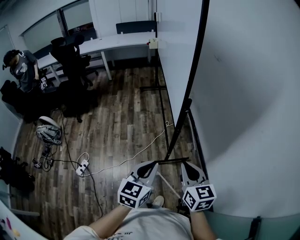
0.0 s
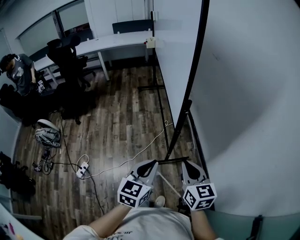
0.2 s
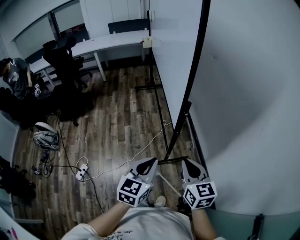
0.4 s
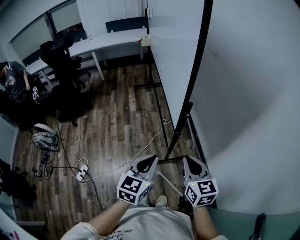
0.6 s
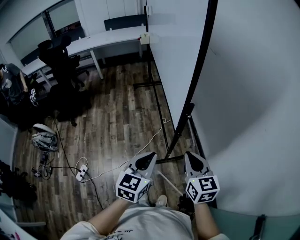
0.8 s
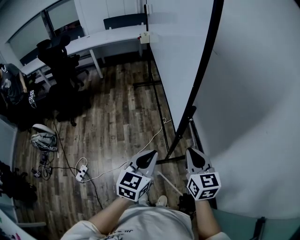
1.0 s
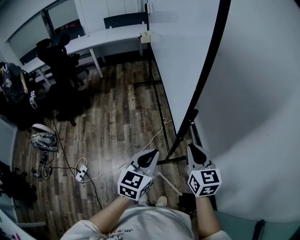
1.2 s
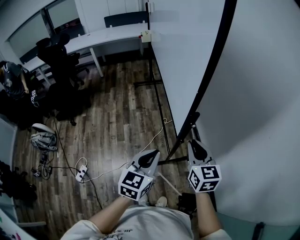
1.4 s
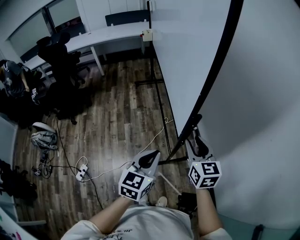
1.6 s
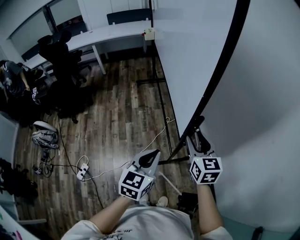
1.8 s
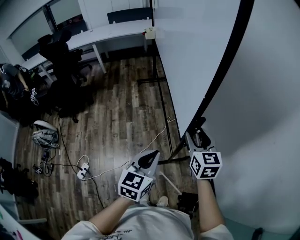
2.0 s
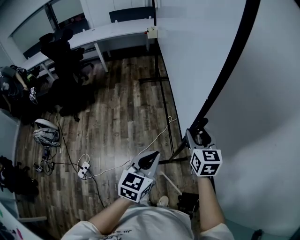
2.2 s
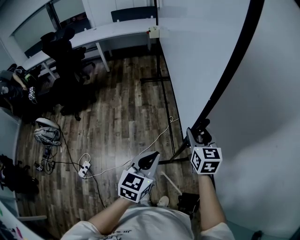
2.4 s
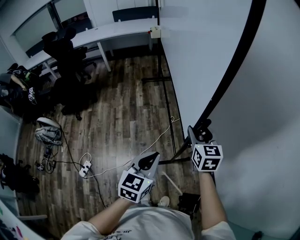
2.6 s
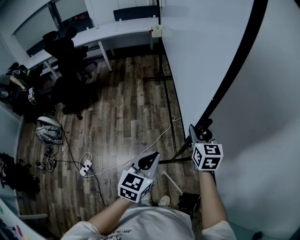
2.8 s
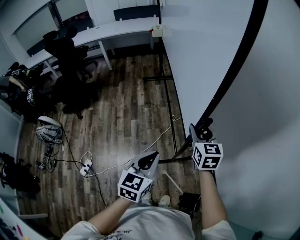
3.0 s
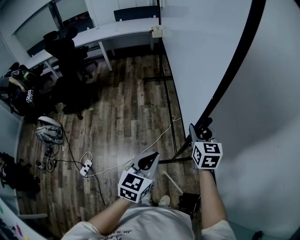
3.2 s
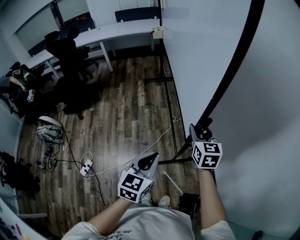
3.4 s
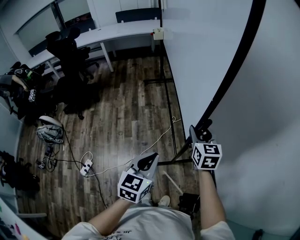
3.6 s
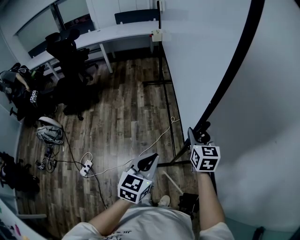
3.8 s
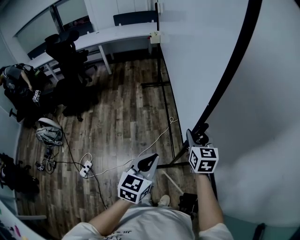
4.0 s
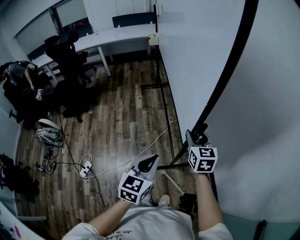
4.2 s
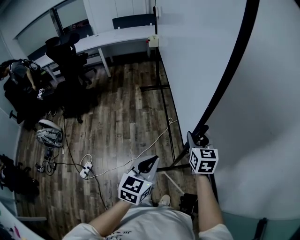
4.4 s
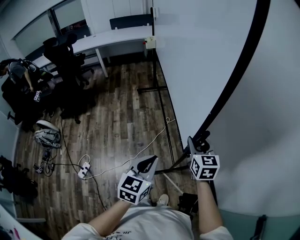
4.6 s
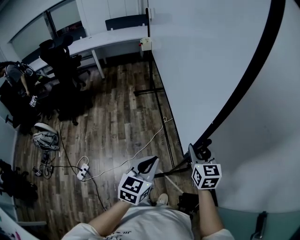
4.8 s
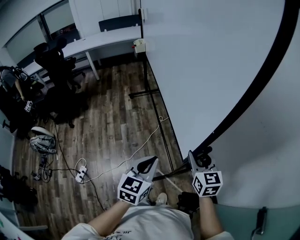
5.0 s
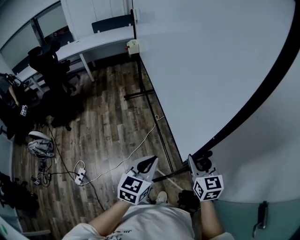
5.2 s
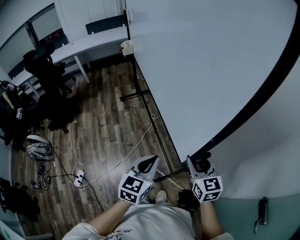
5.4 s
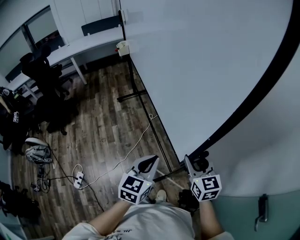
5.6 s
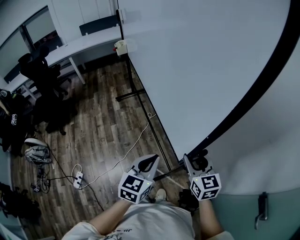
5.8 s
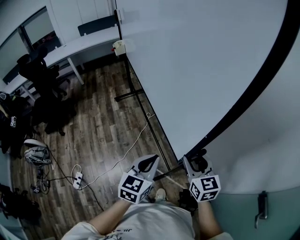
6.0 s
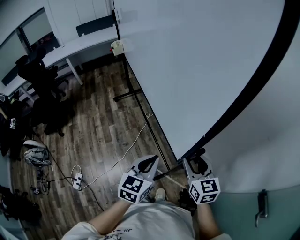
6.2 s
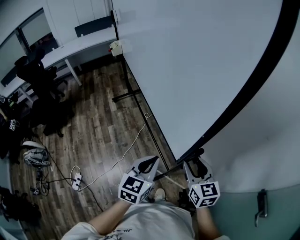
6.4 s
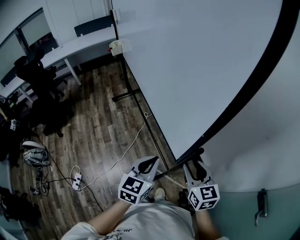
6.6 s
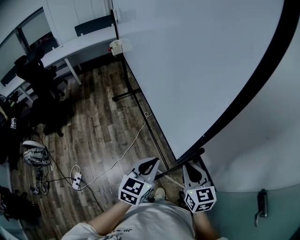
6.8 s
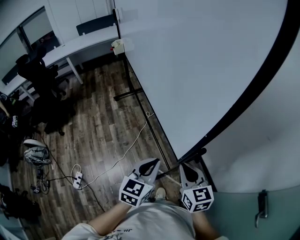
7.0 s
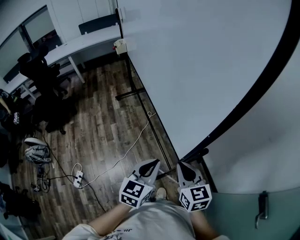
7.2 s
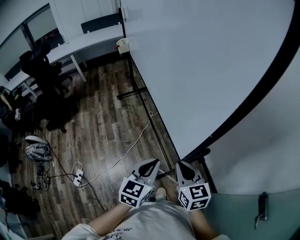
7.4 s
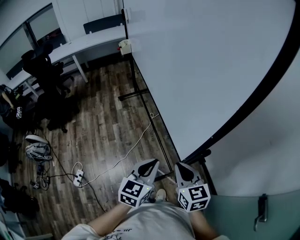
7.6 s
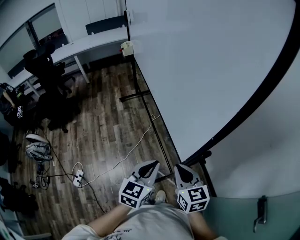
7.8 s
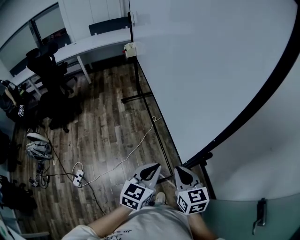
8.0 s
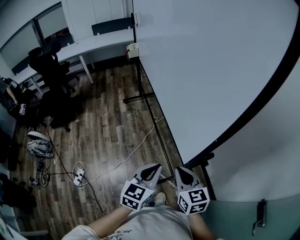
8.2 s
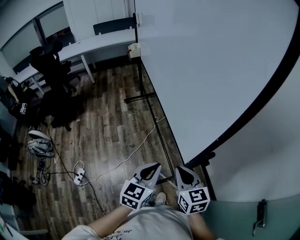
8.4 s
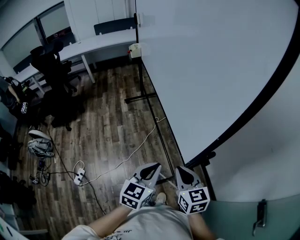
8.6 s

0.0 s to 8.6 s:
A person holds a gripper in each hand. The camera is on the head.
0.0 to 1.4 s: The grippers both shift forward by about 15 cm.
1.4 to 2.8 s: The right gripper moves forward, about 10 cm, and opens.
2.8 to 4.4 s: The two grippers go roughly 10 cm backward.
4.4 to 5.8 s: The left gripper shifts roughly 10 cm to the right, while the right gripper goes roughly 15 cm backward and to the right.
5.8 to 7.2 s: The right gripper shifts about 5 cm backward, and closes its fingers.
7.2 to 8.6 s: The grippers move only a little.

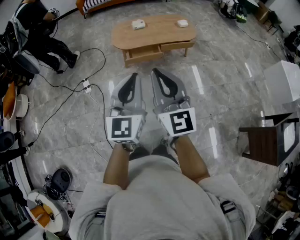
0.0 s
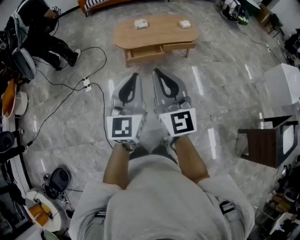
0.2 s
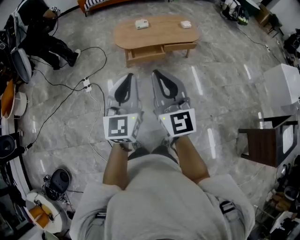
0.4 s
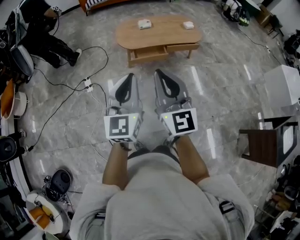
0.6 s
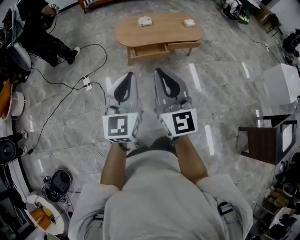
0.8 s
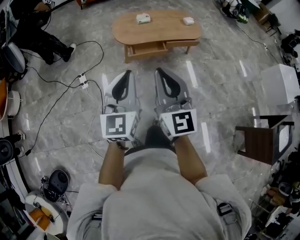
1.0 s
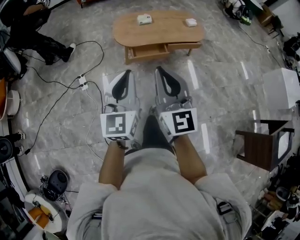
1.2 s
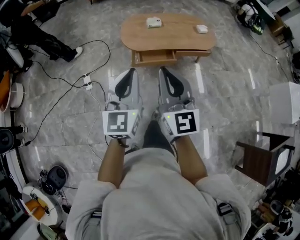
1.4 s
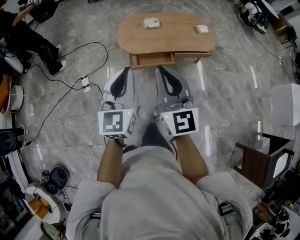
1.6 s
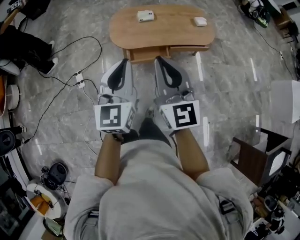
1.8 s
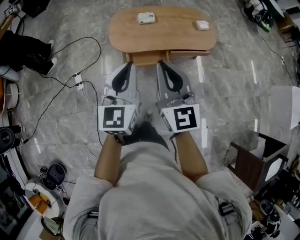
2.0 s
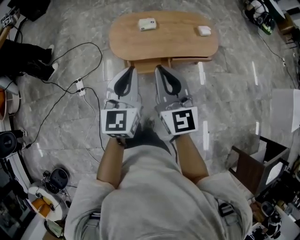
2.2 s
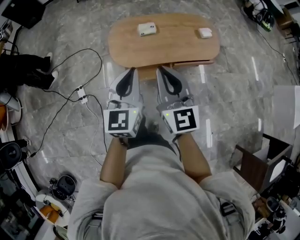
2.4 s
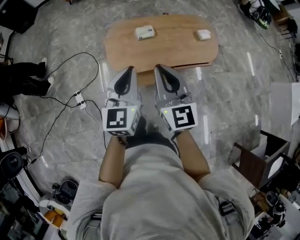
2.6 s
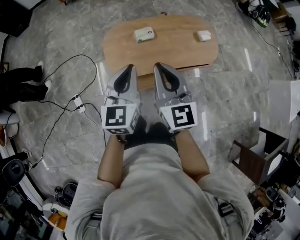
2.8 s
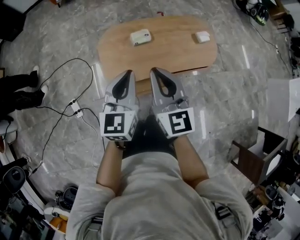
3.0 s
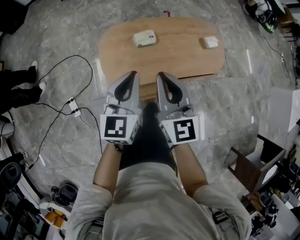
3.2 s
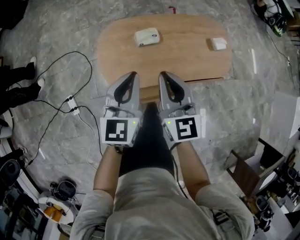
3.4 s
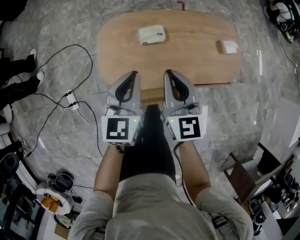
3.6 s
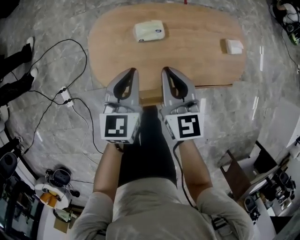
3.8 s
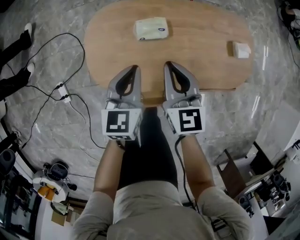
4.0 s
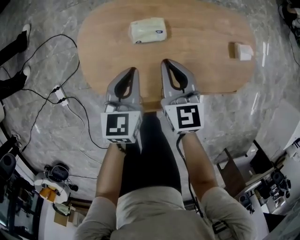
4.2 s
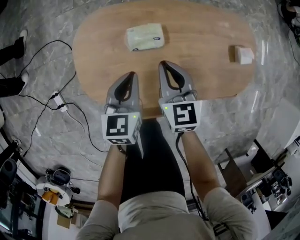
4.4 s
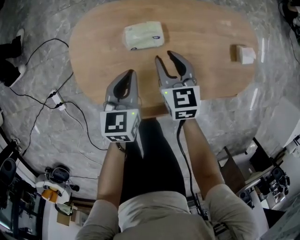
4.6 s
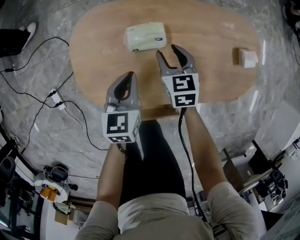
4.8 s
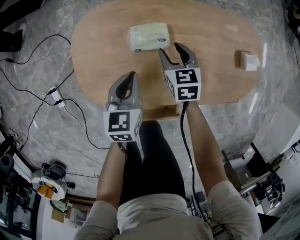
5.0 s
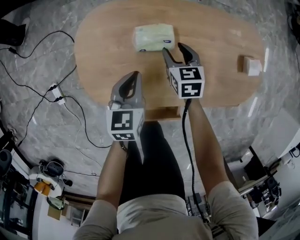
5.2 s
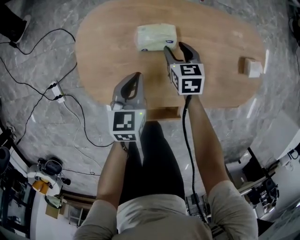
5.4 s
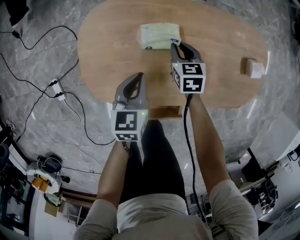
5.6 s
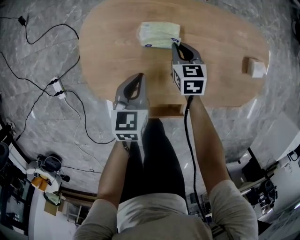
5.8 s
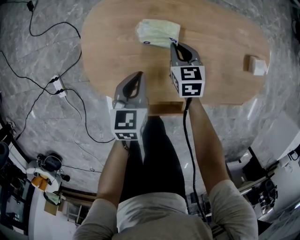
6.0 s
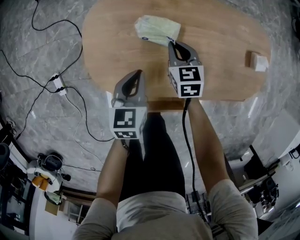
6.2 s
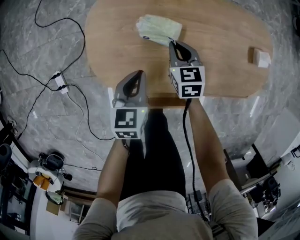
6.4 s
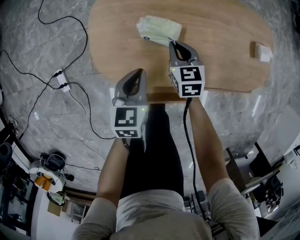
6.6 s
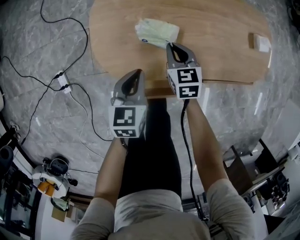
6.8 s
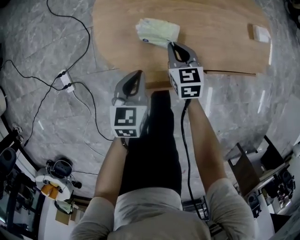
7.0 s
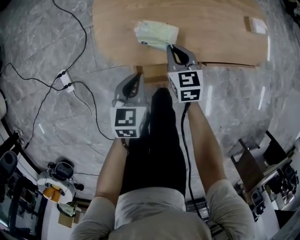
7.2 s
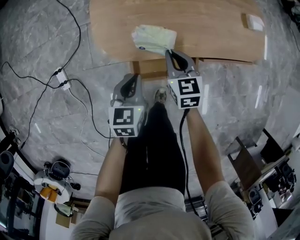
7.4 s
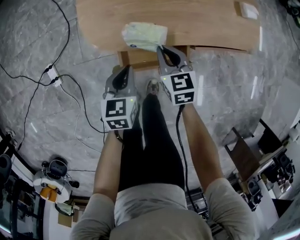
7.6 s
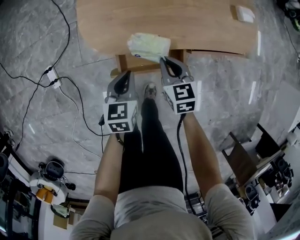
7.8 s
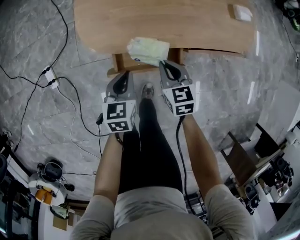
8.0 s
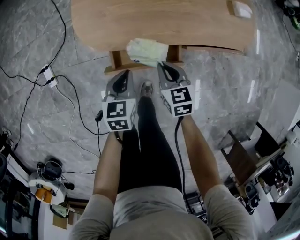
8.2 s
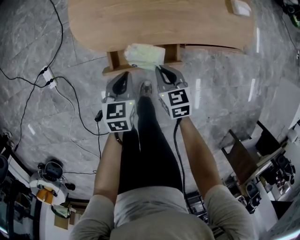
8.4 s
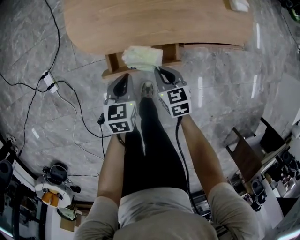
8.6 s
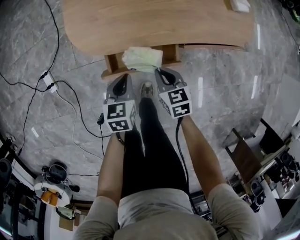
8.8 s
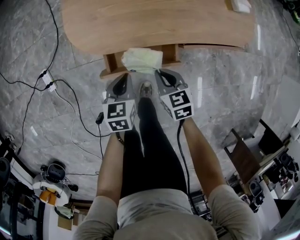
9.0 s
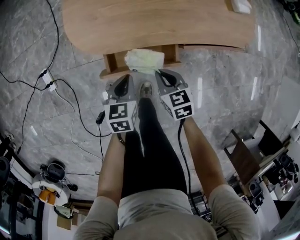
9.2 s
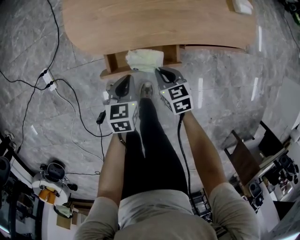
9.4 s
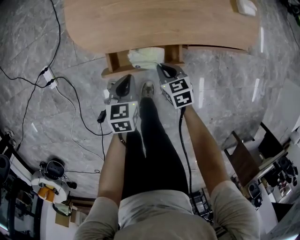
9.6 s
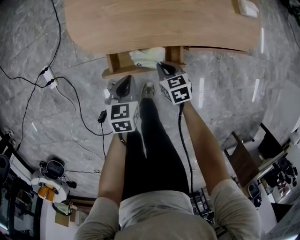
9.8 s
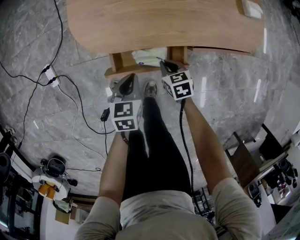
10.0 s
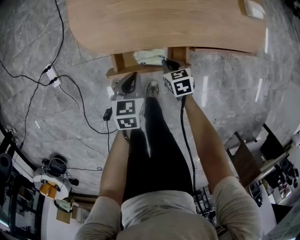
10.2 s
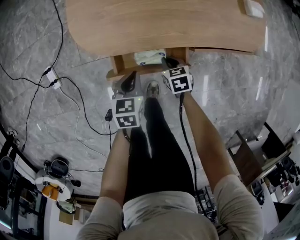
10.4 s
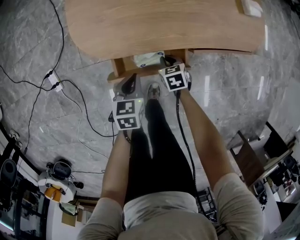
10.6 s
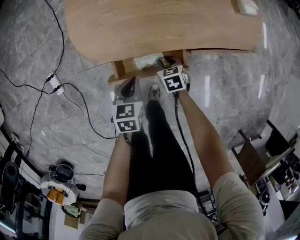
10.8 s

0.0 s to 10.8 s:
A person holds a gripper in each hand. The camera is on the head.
0.0 to 1.6 s: Both grippers move forward, some 30 cm.
1.6 to 3.0 s: The two grippers go roughly 35 cm forward.
3.0 to 4.6 s: The grippers both shift downward and forward by about 50 cm. The right gripper angles its fingers downward, by approximately 30 degrees, and opens its fingers; the left gripper swivels about 30 degrees.
4.6 to 6.2 s: The right gripper travels downward by roughly 10 cm, and closes its fingers. Meanwhile the left gripper moves some 5 cm.
6.2 to 7.8 s: The grippers both shift backward by approximately 25 cm.
7.8 to 9.2 s: The right gripper goes approximately 10 cm backward and downward, while the left gripper moves approximately 5 cm.
9.2 to 10.8 s: The right gripper is displaced downward and forward by approximately 15 cm, and opens up.

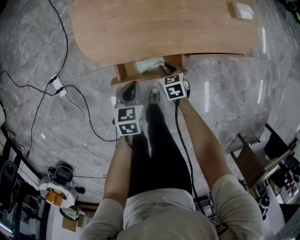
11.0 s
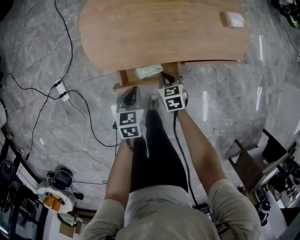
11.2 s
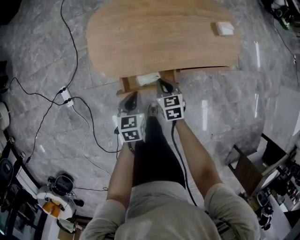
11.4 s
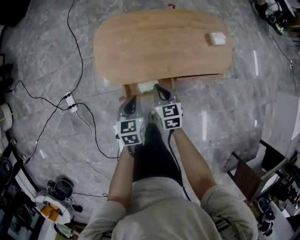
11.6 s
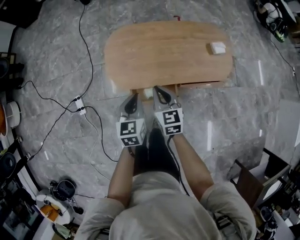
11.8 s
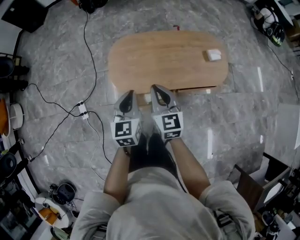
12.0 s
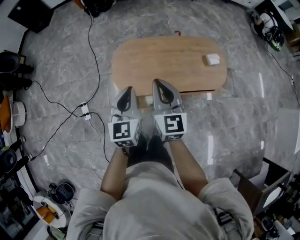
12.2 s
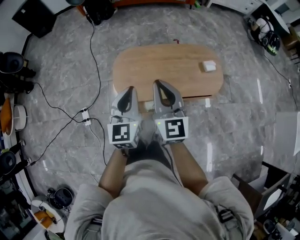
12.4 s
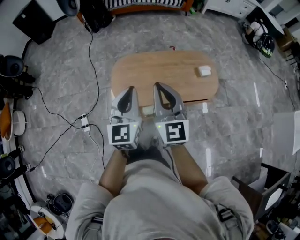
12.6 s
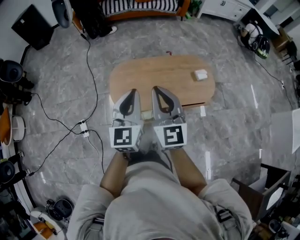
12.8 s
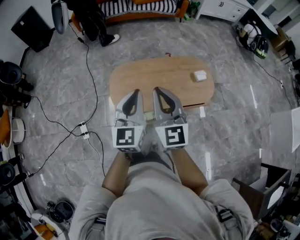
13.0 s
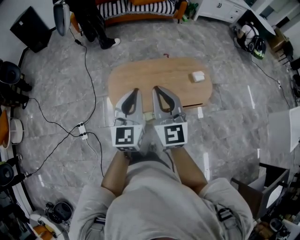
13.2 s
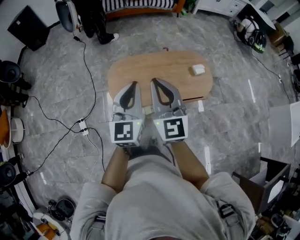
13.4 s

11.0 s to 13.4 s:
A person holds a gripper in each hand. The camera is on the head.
11.0 to 12.2 s: The two grippers go about 50 cm upward. The left gripper tilts its fingers about 30 degrees upward. Meanwhile the right gripper tilts its fingers some 50 degrees upward.
12.2 to 13.4 s: Both grippers move upward, approximately 15 cm.

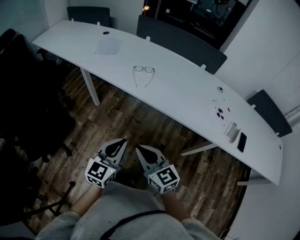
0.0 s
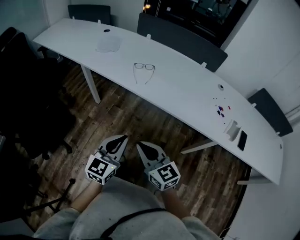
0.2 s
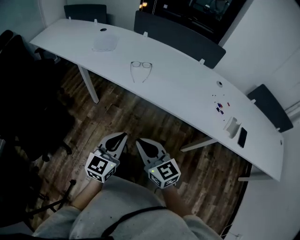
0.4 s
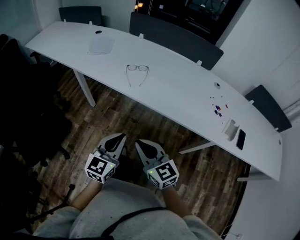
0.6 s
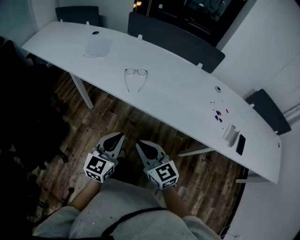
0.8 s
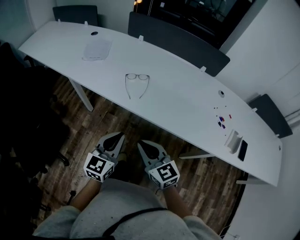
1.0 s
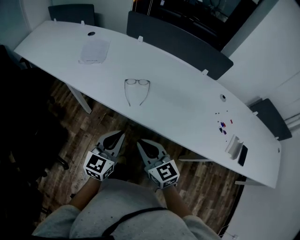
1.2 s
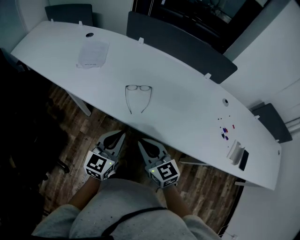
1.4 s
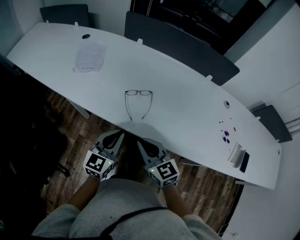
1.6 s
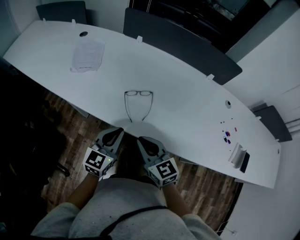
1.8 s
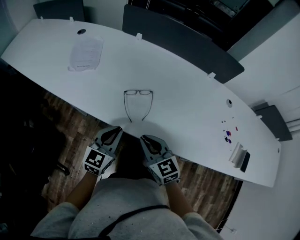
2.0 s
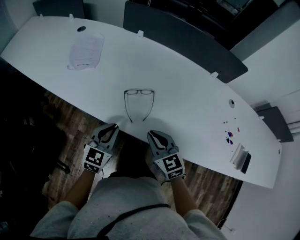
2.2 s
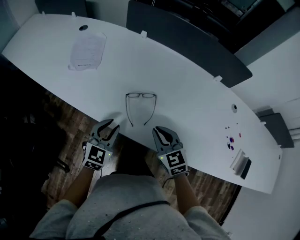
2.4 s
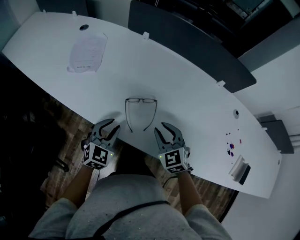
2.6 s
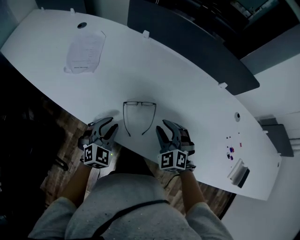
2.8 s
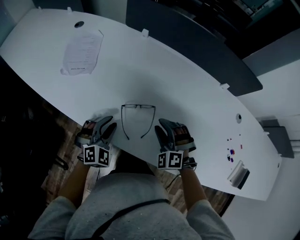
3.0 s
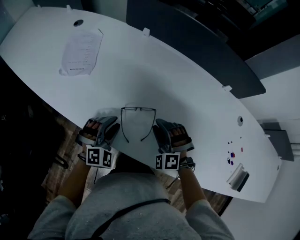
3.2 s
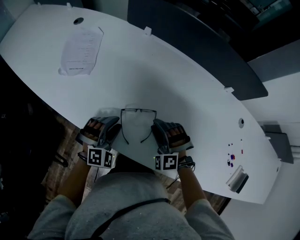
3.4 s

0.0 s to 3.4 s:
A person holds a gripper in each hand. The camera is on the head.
0.0 to 1.6 s: Both grippers move forward, approximately 35 cm.
1.6 to 3.4 s: Both grippers travel together forward and downward, about 25 cm. The left gripper twists roughly 60 degrees clockwise, seen from behind, and opens up, while the right gripper rolls counterclockwise, seen from behind, by some 80 degrees, and opens its fingers.
